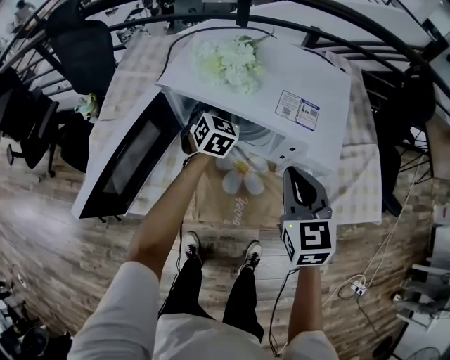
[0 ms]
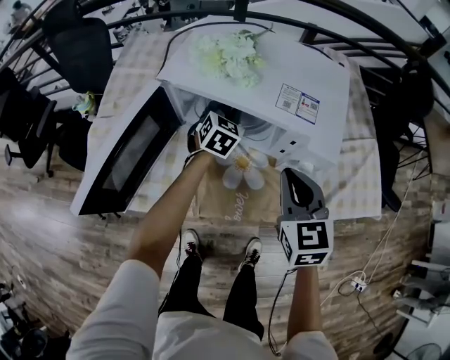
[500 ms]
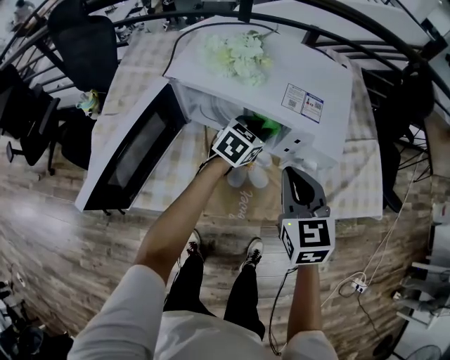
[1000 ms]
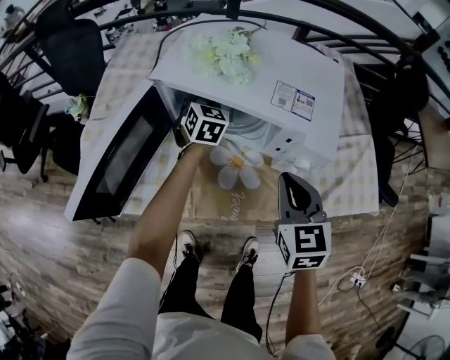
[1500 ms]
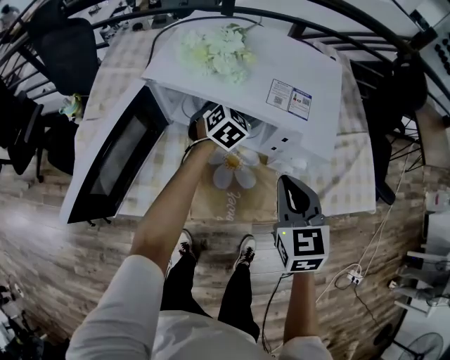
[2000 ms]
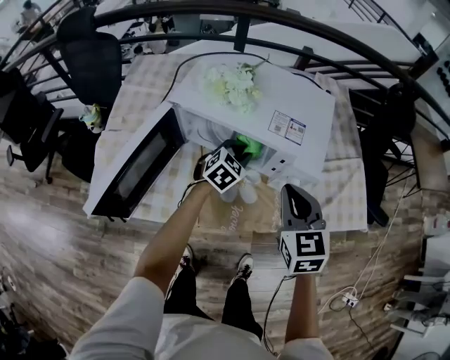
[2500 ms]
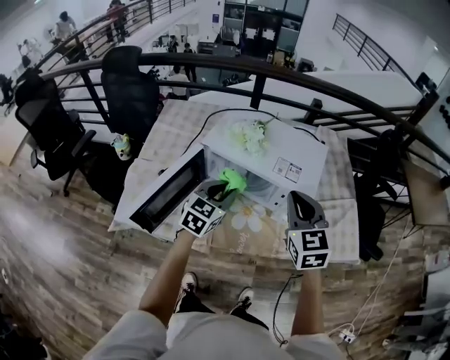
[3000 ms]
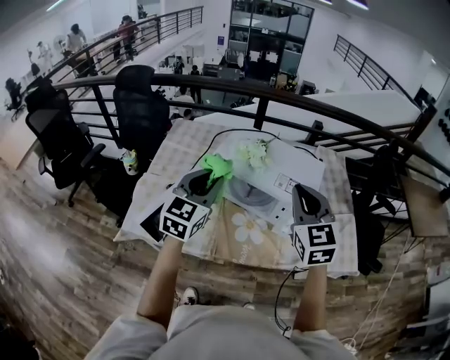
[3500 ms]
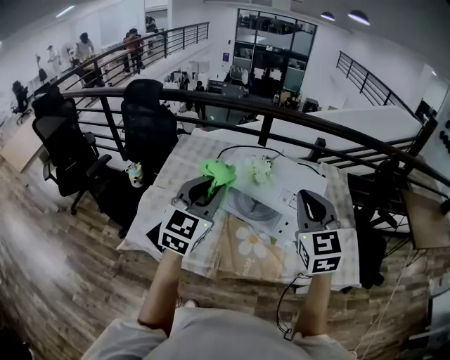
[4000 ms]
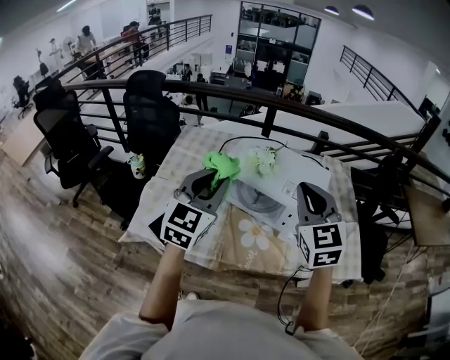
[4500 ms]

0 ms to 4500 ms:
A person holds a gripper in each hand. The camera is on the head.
0 ms to 2000 ms: The left gripper swings left and right, some 15 cm each way, with 2 reversals.
2000 ms to 4500 ms: The left gripper moves upward, backward and to the left, approximately 50 cm, and points its fingers about 30 degrees further upward. Meanwhile the right gripper moves upward, about 30 cm, and rotates about 30 degrees.

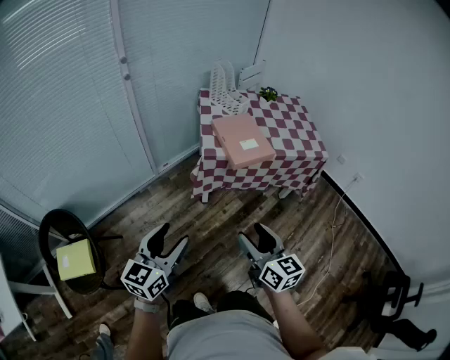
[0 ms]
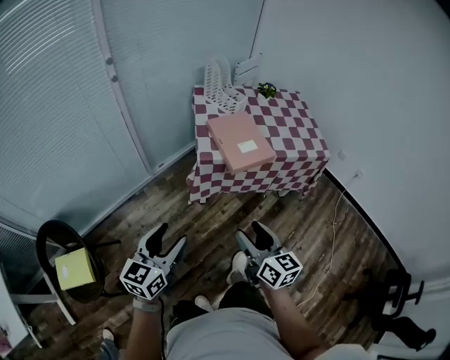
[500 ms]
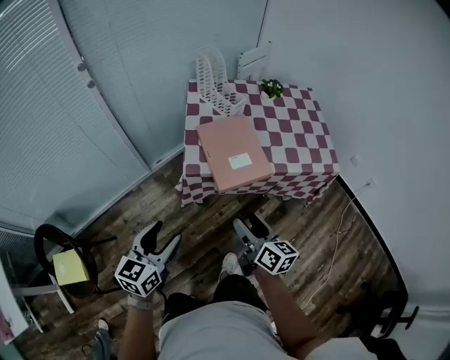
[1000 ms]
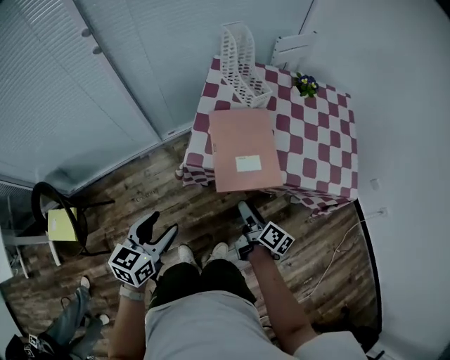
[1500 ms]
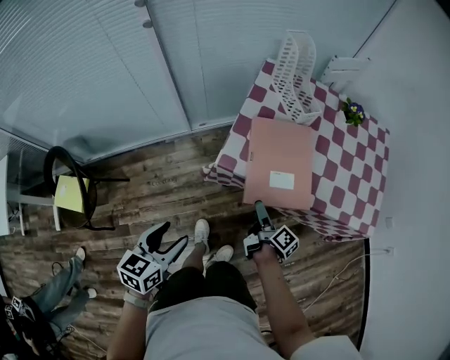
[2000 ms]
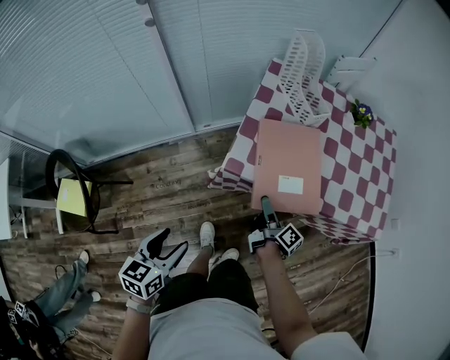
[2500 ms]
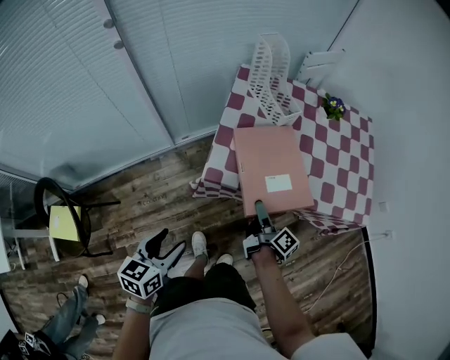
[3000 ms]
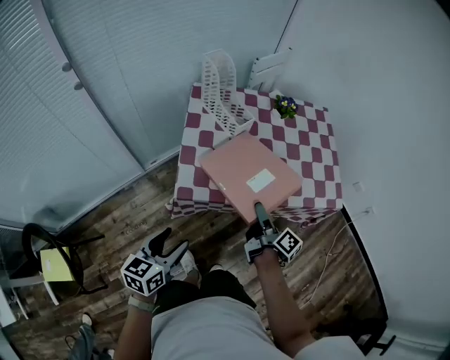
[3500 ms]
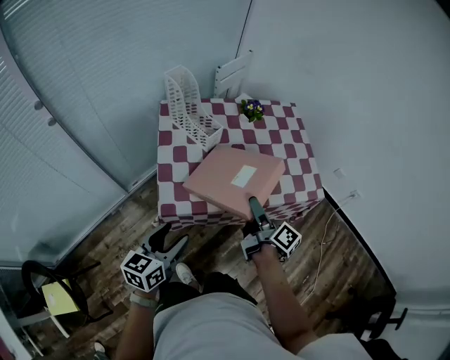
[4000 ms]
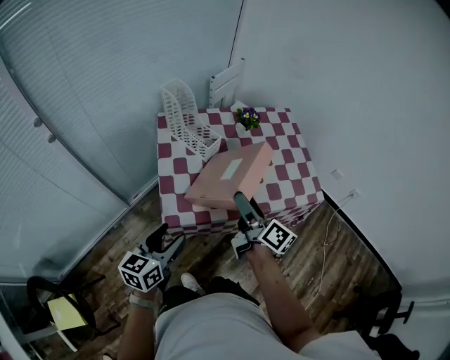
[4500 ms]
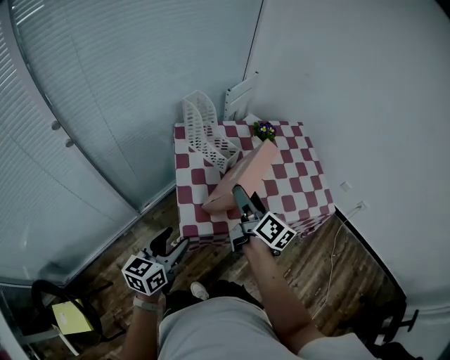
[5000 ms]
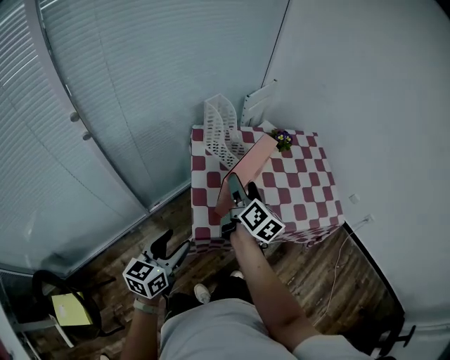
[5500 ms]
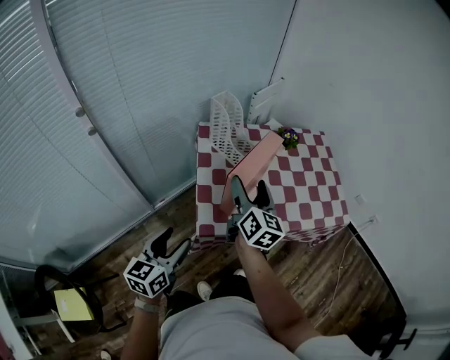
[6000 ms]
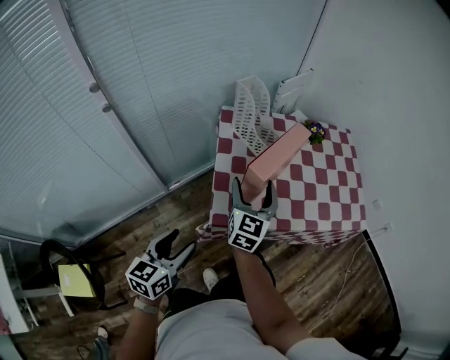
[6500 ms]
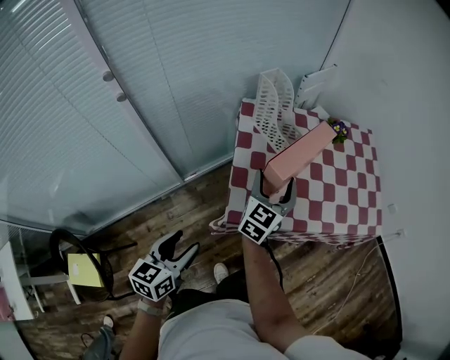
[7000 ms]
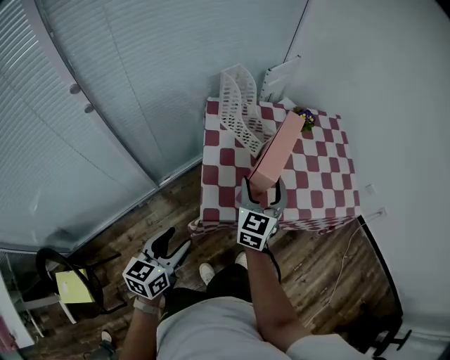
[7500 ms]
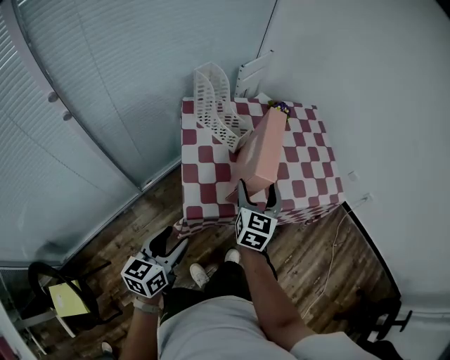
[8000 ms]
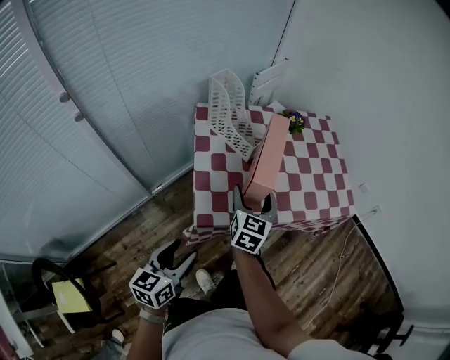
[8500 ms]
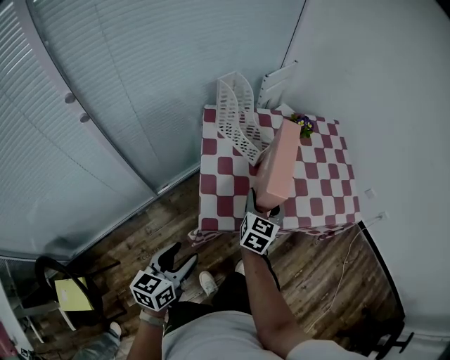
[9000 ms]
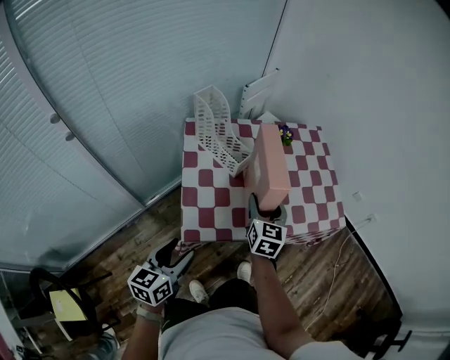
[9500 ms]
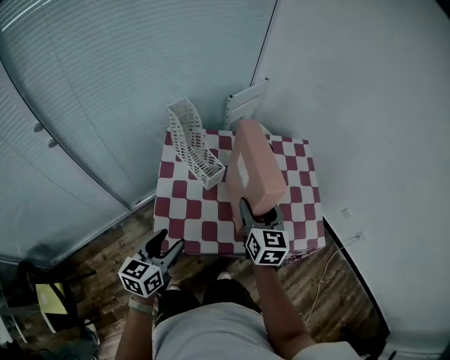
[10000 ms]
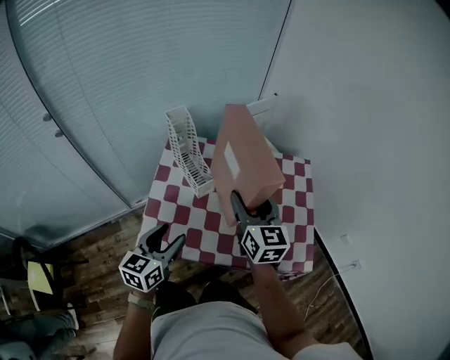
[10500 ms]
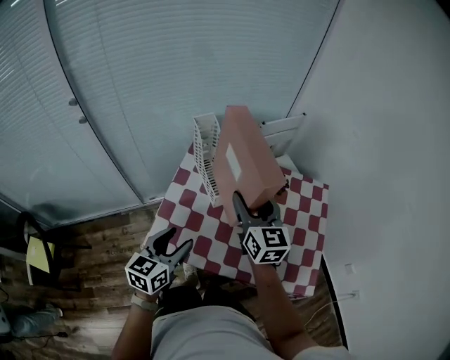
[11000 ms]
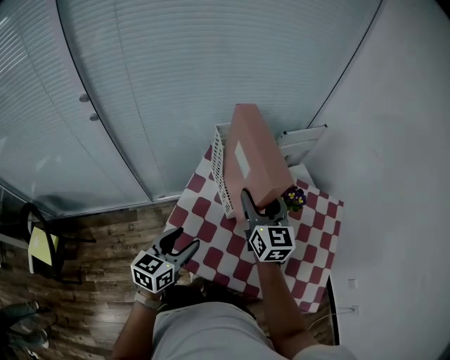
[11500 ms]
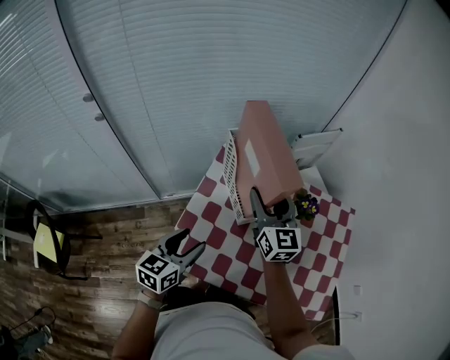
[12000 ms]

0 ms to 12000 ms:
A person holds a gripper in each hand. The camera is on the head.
0 ms to 2000 ms: The left gripper travels forward, downward and to the right by approximately 30 cm, and swivels some 30 degrees; the right gripper shifts some 50 cm forward and downward, rolls clockwise, seen from behind, by roughly 60 degrees, and opens up.
2000 ms to 4000 ms: The left gripper changes place by approximately 20 cm, and rotates some 30 degrees; the right gripper travels upward by about 20 cm, and changes its angle by some 30 degrees.
4000 ms to 6000 ms: The left gripper shifts about 15 cm to the left; the right gripper shifts some 20 cm to the left and upward, and rolls counterclockwise, seen from behind, by approximately 50 degrees.
6000 ms to 8000 ms: The left gripper moves approximately 5 cm; the right gripper moves downward and to the right, some 10 cm, and turns by about 30 degrees.
8000 ms to 10000 ms: The grippers both shift forward and to the right by about 15 cm. The right gripper changes its angle by approximately 20 degrees.
10000 ms to 12000 ms: The right gripper shifts some 20 cm forward and to the left, and turns by some 30 degrees. The left gripper shifts some 10 cm forward.

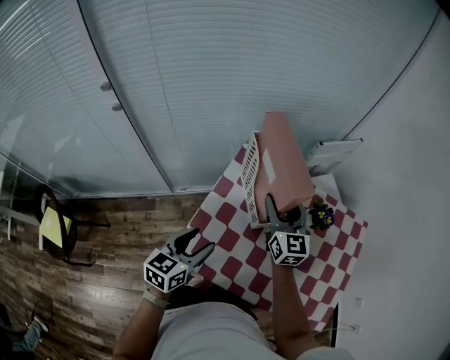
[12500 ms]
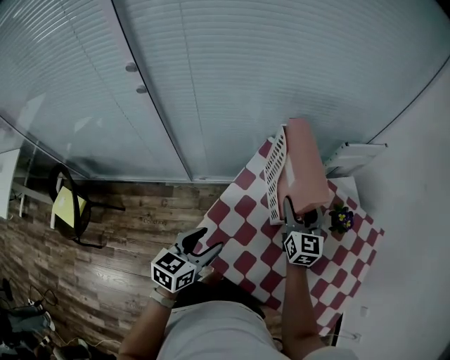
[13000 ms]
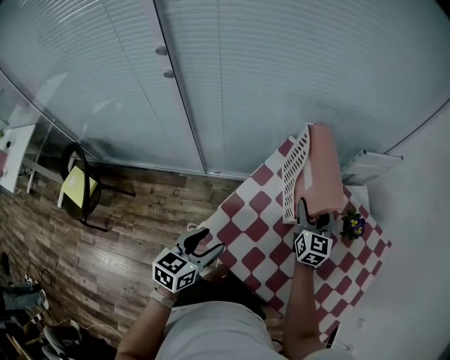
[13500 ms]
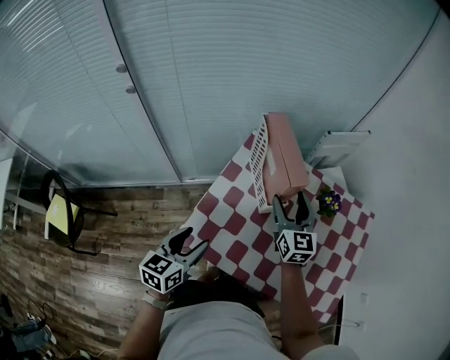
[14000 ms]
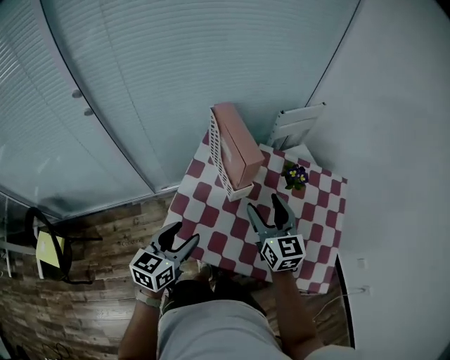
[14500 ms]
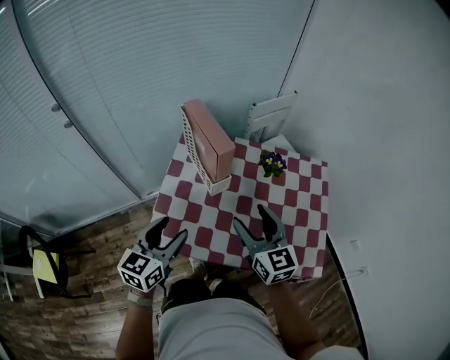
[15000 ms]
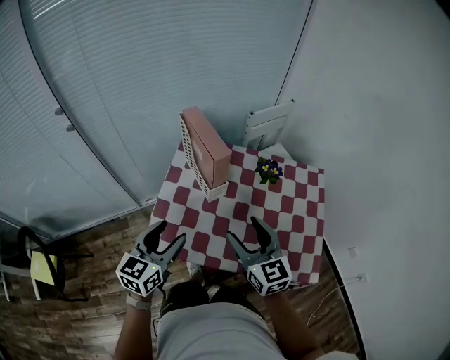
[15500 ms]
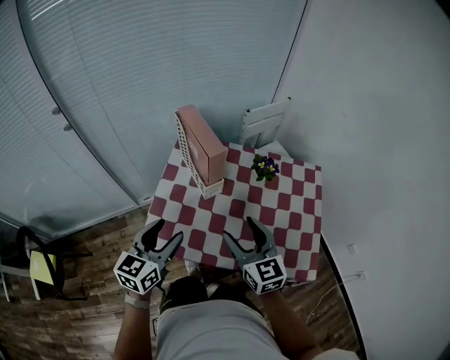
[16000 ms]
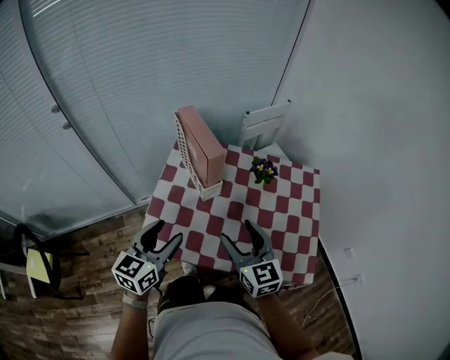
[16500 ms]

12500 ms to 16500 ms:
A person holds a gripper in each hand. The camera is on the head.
12500 ms to 14500 ms: The left gripper heads backward, covering roughly 5 cm; the right gripper is displaced backward by some 15 cm.
14500 ms to 16500 ms: The left gripper ends up approximately 5 cm from where it was; the right gripper travels backward by about 10 cm.

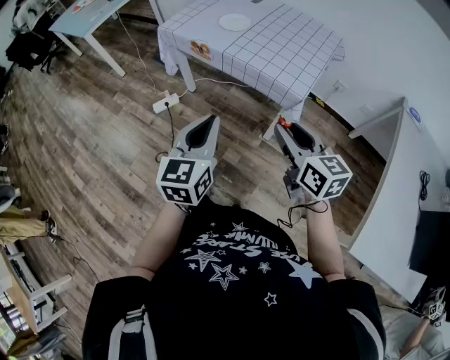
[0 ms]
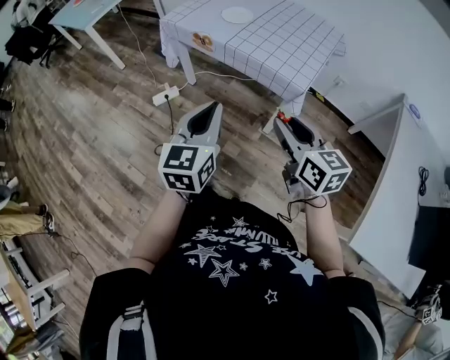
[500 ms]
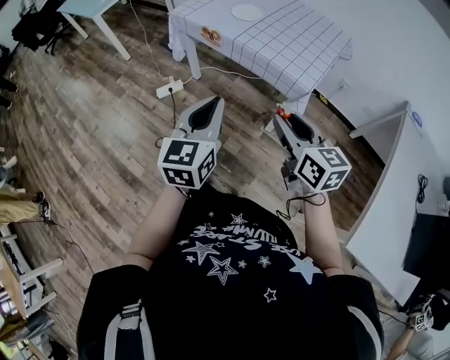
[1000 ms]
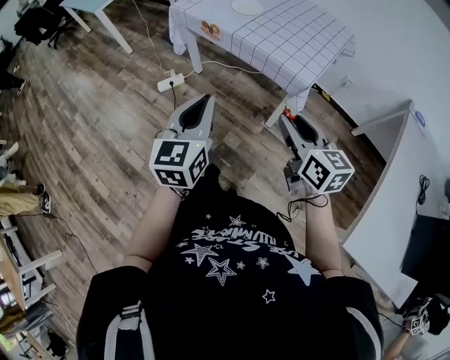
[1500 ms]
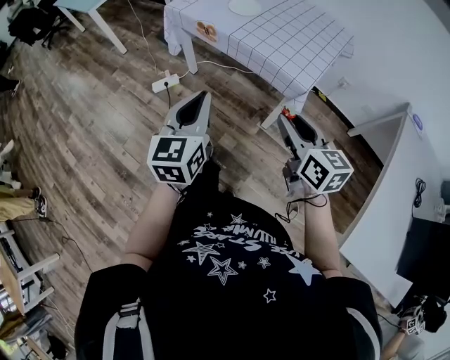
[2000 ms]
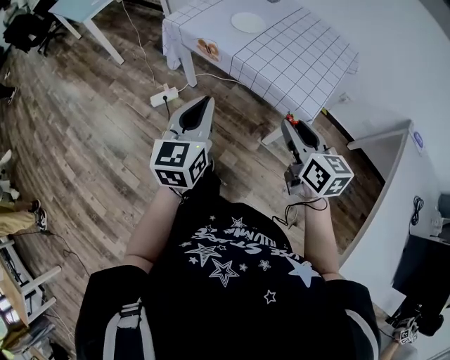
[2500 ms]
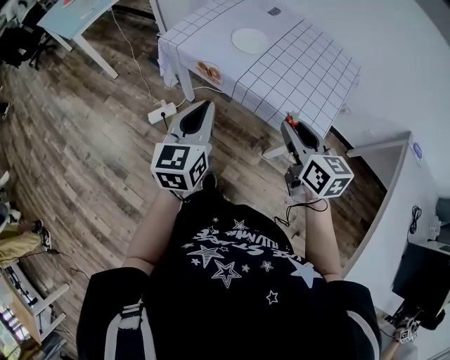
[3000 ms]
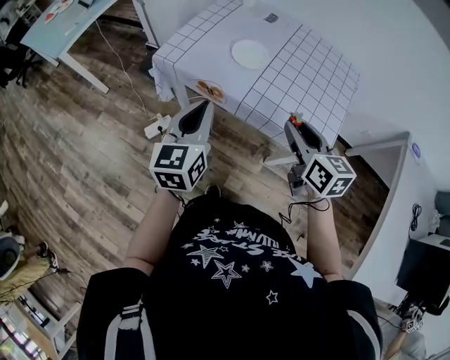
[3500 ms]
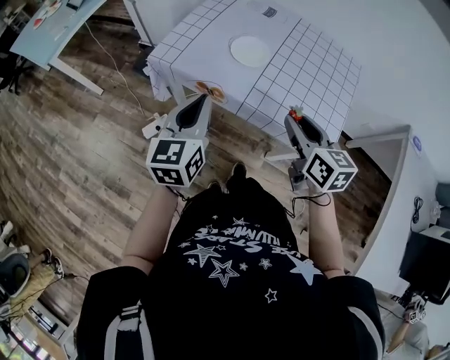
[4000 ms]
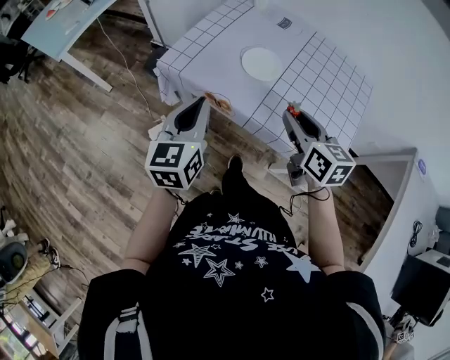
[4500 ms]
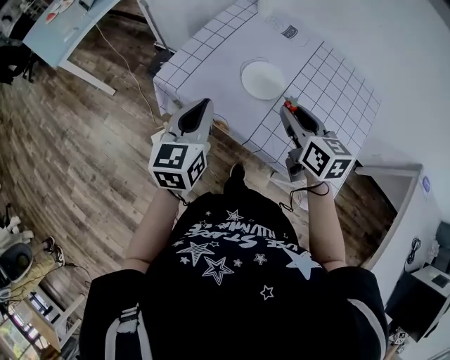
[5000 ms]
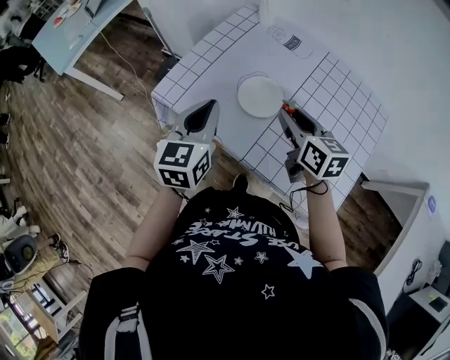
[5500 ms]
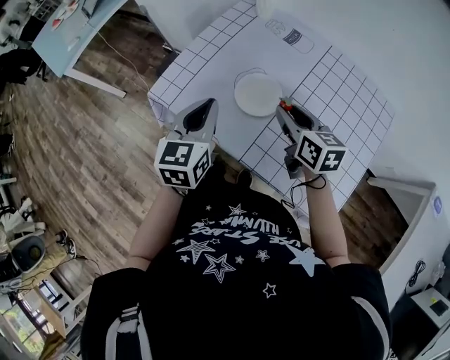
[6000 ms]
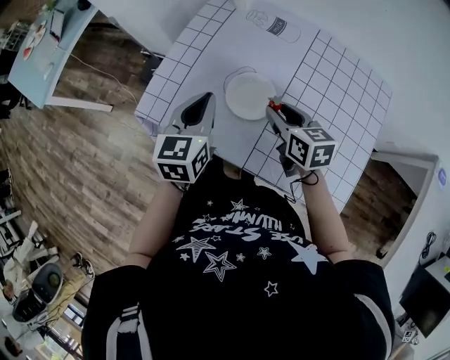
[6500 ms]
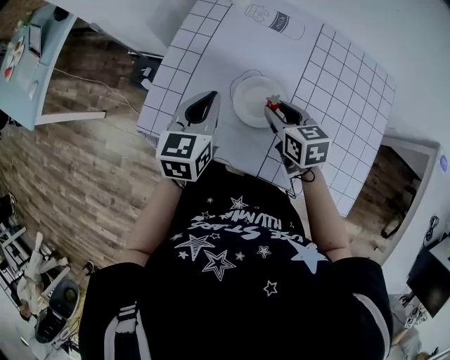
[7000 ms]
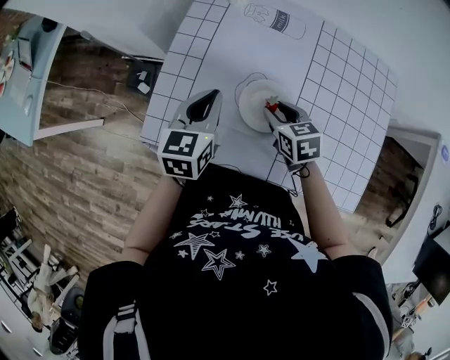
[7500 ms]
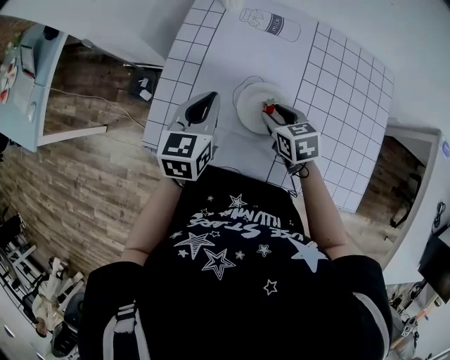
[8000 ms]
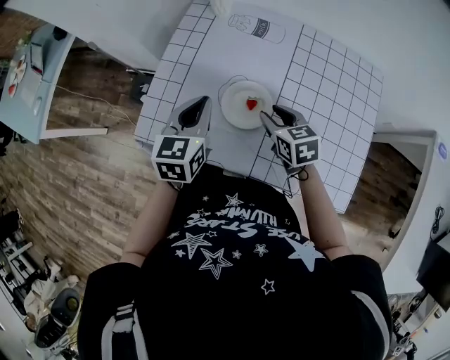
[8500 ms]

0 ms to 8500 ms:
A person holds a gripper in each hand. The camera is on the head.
0 ms to 2000 ms: The grippers move only a little.
2000 ms to 4000 ms: The grippers both shift forward by roughly 30 cm.
4000 ms to 6500 ms: The left gripper moves forward, approximately 25 cm, while the right gripper goes approximately 30 cm forward and downward.
